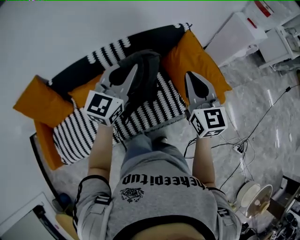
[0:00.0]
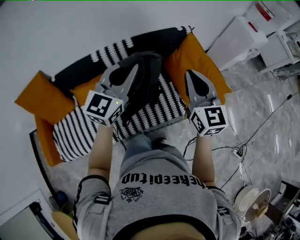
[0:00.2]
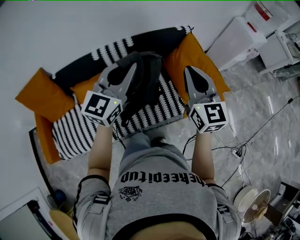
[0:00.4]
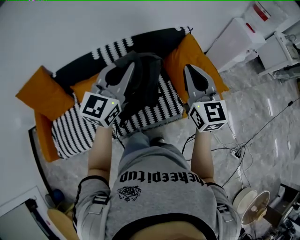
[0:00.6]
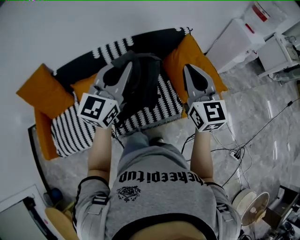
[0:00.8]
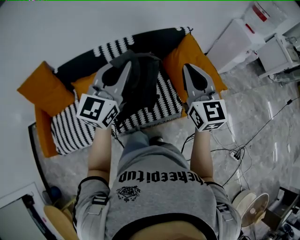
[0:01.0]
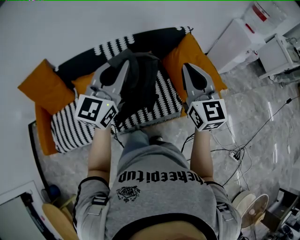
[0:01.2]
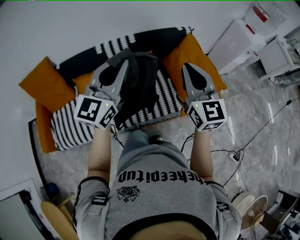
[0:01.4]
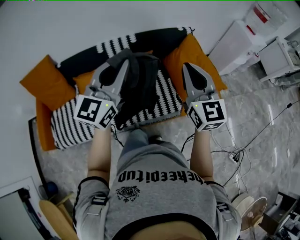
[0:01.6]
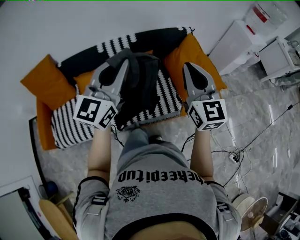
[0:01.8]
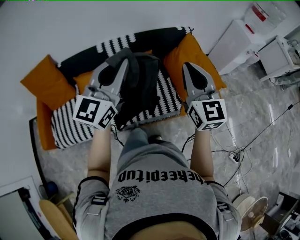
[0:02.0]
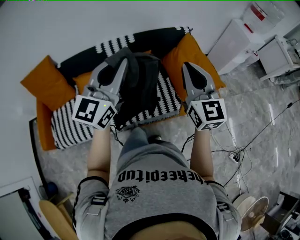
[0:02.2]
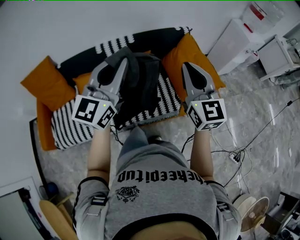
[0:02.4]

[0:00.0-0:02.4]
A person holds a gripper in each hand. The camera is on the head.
0:00.0 to 0:01.2: The right gripper is displaced backward by about 5 cm, while the left gripper heads backward and upward, covering about 10 cm.
0:01.2 to 0:02.4: The left gripper moves about 5 cm.

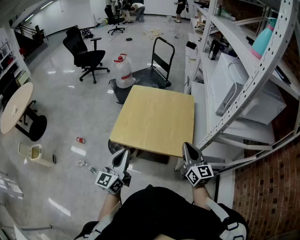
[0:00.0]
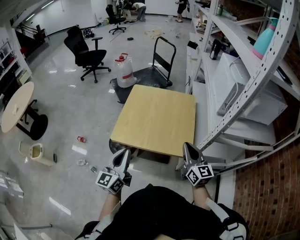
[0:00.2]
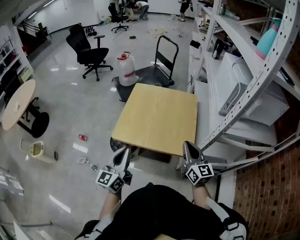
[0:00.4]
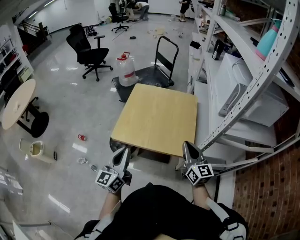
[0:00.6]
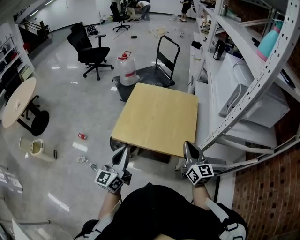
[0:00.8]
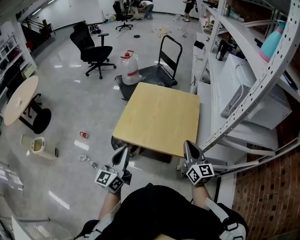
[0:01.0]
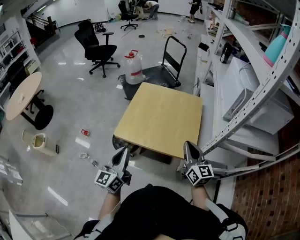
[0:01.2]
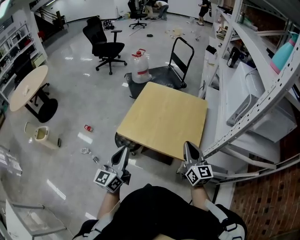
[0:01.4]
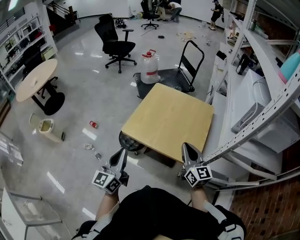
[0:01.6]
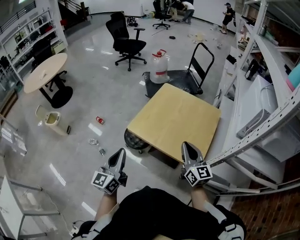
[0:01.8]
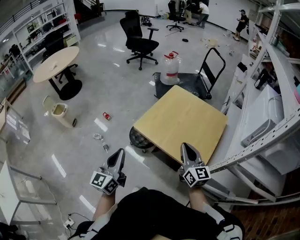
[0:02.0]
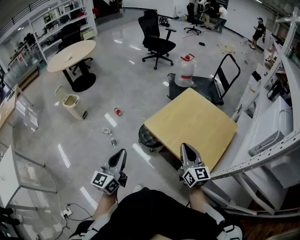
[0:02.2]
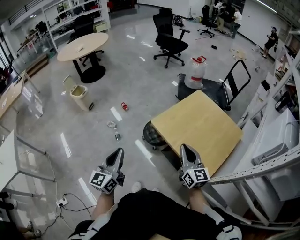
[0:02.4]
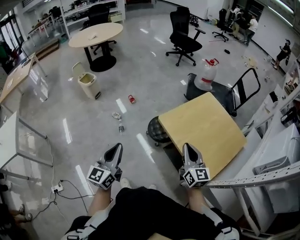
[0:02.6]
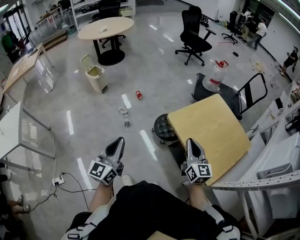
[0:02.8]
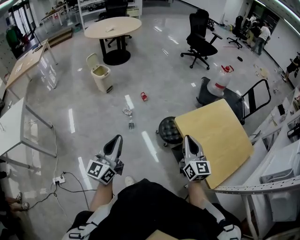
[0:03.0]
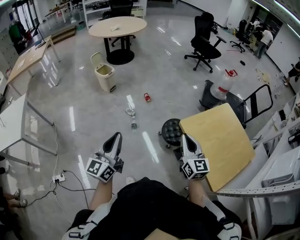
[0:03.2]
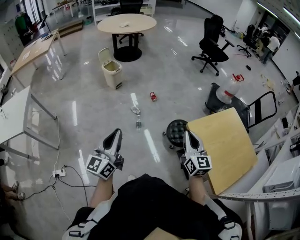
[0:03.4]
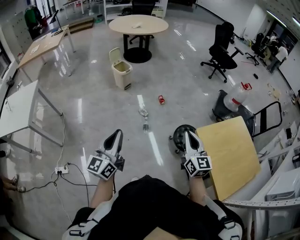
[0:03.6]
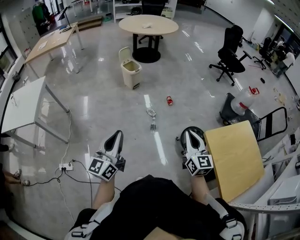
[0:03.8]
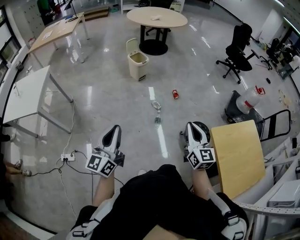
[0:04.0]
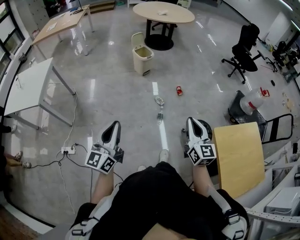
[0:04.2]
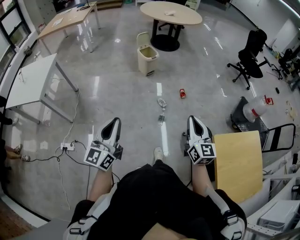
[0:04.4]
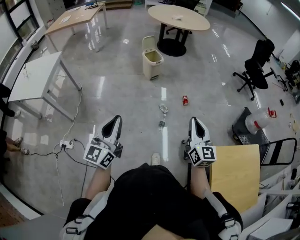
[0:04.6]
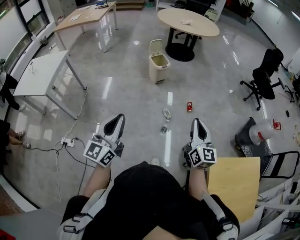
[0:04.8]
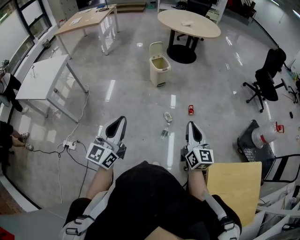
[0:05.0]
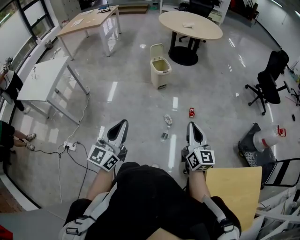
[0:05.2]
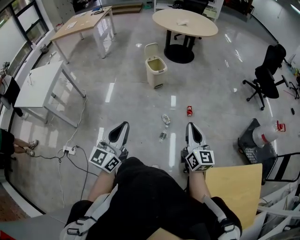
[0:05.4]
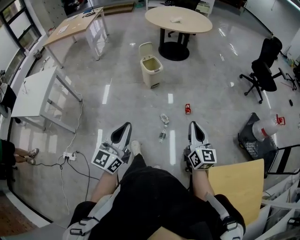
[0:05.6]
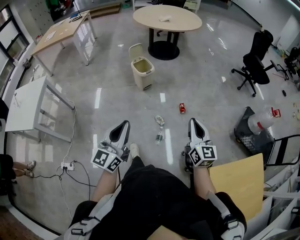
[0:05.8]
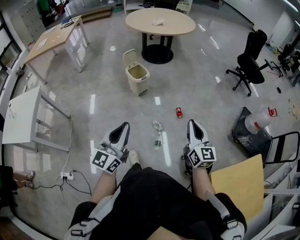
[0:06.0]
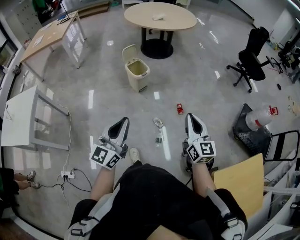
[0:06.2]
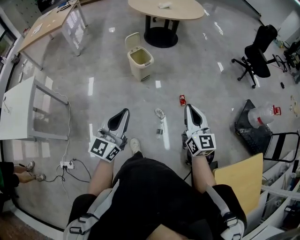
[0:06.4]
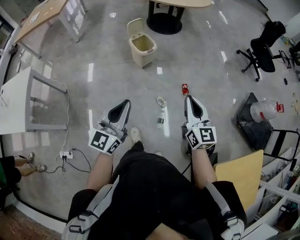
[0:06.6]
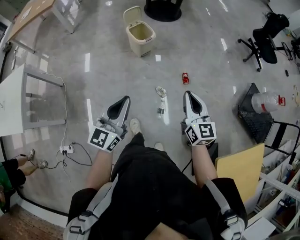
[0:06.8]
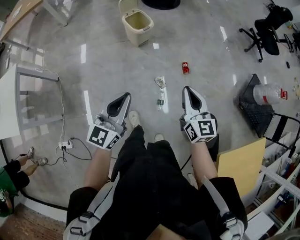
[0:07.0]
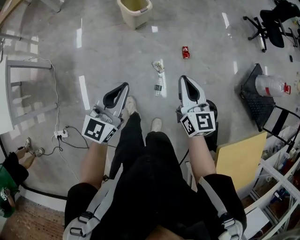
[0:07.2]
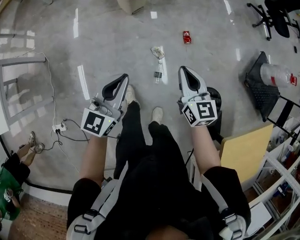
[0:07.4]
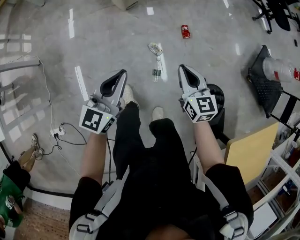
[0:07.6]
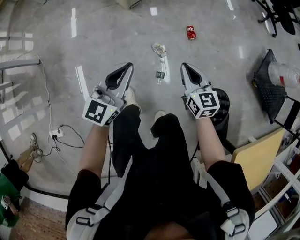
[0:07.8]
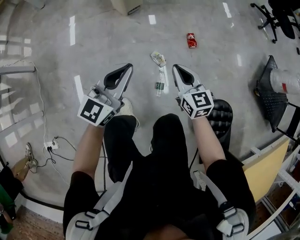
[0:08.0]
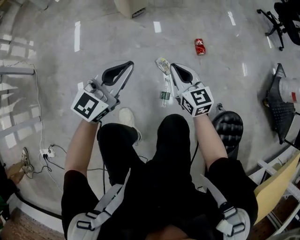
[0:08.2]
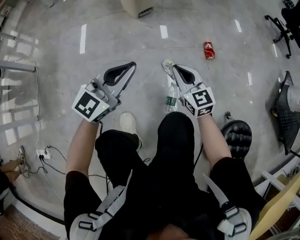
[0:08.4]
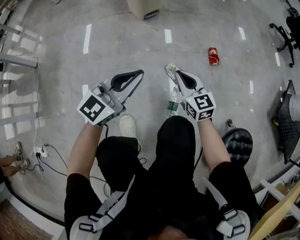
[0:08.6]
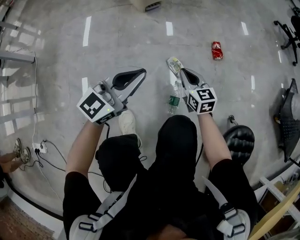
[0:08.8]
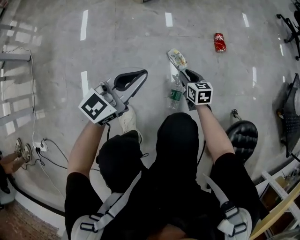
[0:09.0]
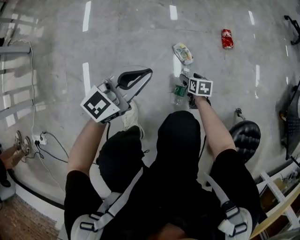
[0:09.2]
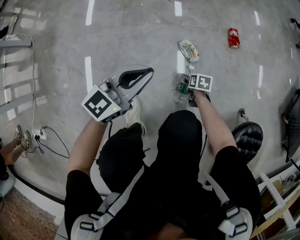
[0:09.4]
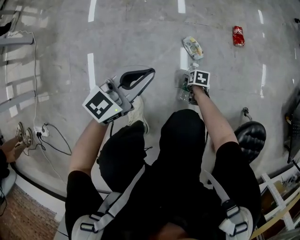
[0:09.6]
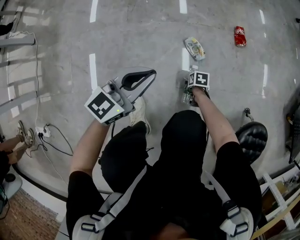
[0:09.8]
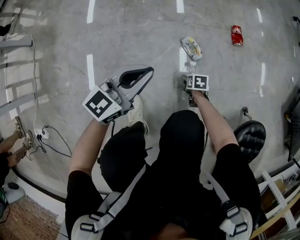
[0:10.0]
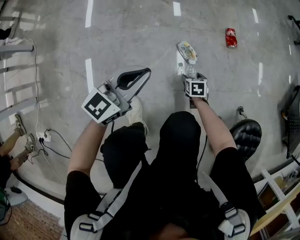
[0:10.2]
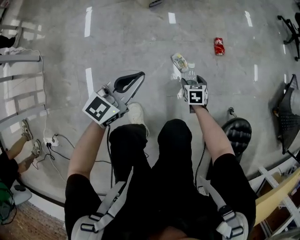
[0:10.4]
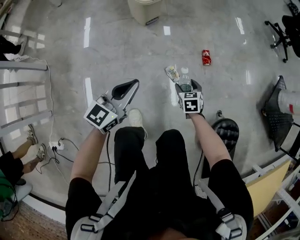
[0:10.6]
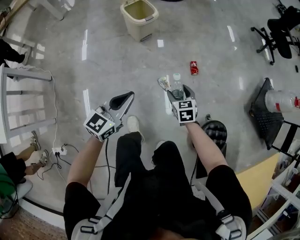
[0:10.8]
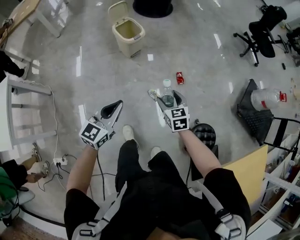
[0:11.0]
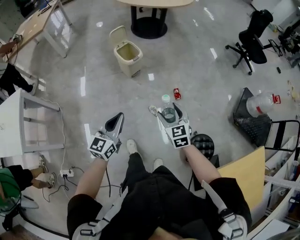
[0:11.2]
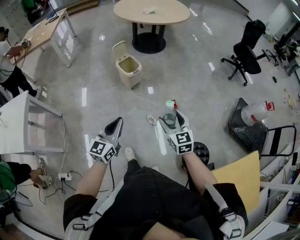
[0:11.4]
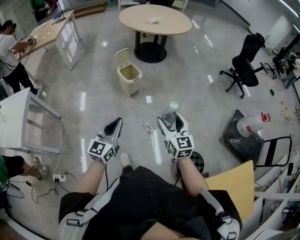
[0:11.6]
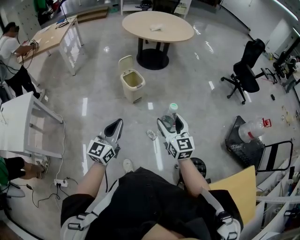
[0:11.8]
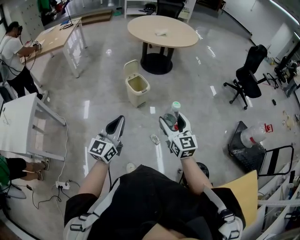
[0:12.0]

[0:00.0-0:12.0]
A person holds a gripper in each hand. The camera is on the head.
0:00.0 to 0:01.6: The right gripper changes place by roughly 5 cm.
0:01.6 to 0:03.0: The left gripper moves roughly 25 cm, and rotates roughly 40 degrees. Meanwhile the right gripper ends up some 25 cm from where it was, and changes its angle by approximately 30 degrees.
0:03.0 to 0:04.4: The right gripper is displaced to the left and forward by about 30 cm, and swivels roughly 20 degrees. Meanwhile the left gripper moves to the left, some 25 cm, and swivels roughly 20 degrees.
0:04.4 to 0:06.0: The two grippers go some 25 cm forward.
0:06.0 to 0:07.6: The right gripper is displaced downward by about 30 cm, and changes its angle by roughly 20 degrees, while the left gripper goes some 30 cm downward and forward.
0:07.6 to 0:09.0: The left gripper moves downward, roughly 35 cm. The right gripper goes roughly 50 cm downward, and rotates approximately 20 degrees.
0:09.0 to 0:10.4: The right gripper moves roughly 20 cm downward and comes back, rotates approximately 20 degrees, and opens up, while the left gripper shifts about 5 cm upward.
0:10.4 to 0:12.0: Both grippers travel together upward, some 70 cm. The right gripper tips its fingers upward by approximately 50 degrees; the left gripper rotates approximately 30 degrees.

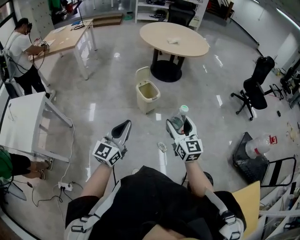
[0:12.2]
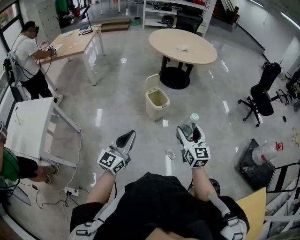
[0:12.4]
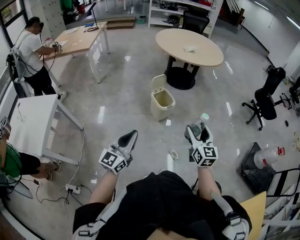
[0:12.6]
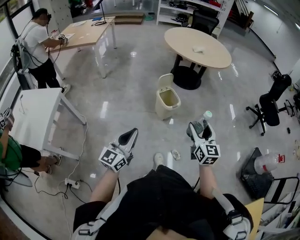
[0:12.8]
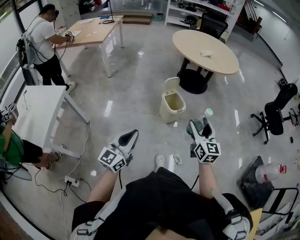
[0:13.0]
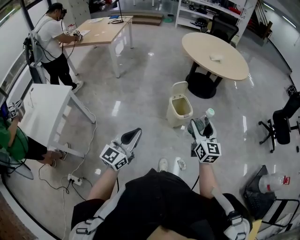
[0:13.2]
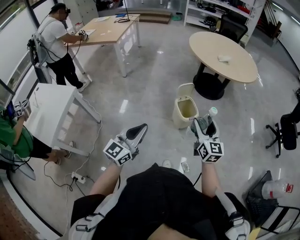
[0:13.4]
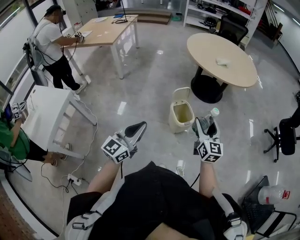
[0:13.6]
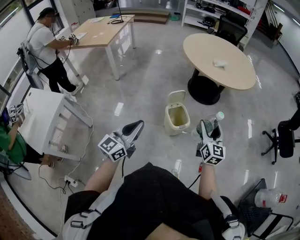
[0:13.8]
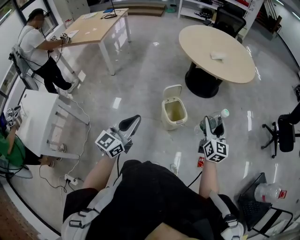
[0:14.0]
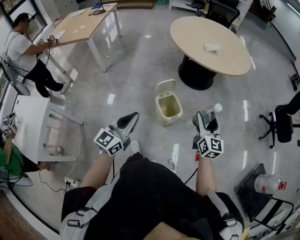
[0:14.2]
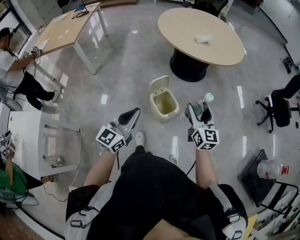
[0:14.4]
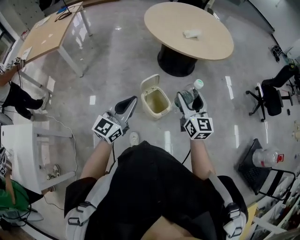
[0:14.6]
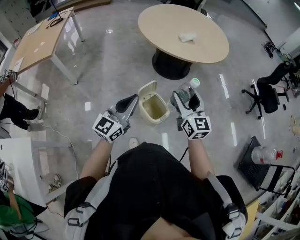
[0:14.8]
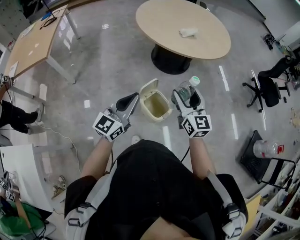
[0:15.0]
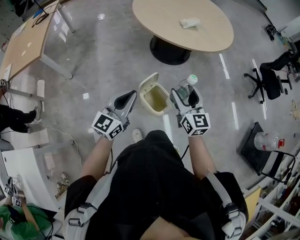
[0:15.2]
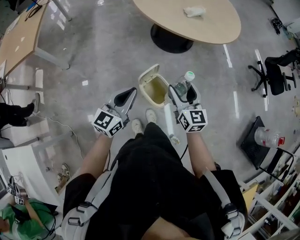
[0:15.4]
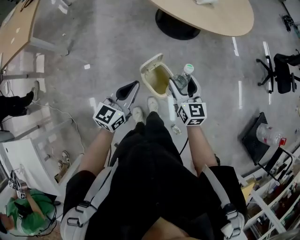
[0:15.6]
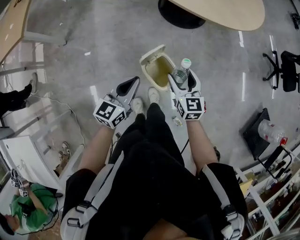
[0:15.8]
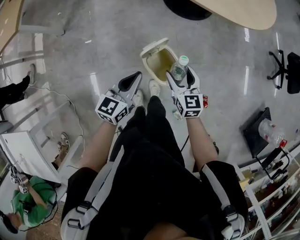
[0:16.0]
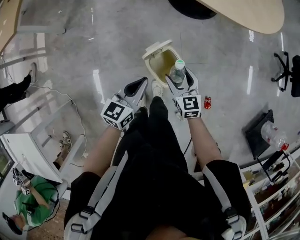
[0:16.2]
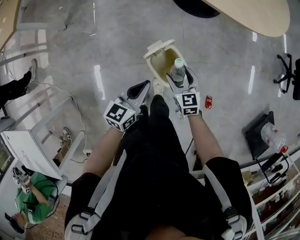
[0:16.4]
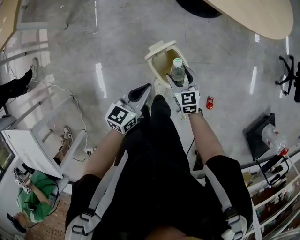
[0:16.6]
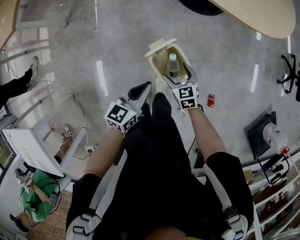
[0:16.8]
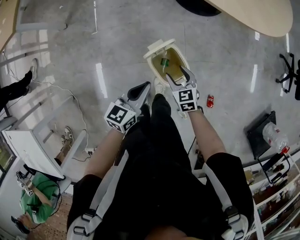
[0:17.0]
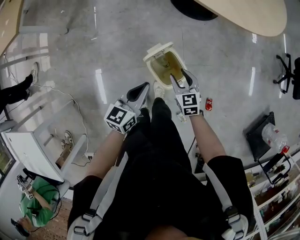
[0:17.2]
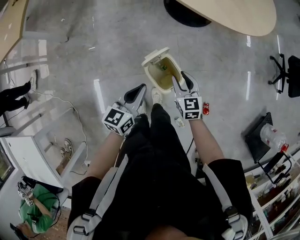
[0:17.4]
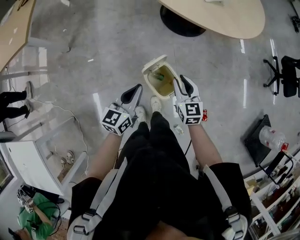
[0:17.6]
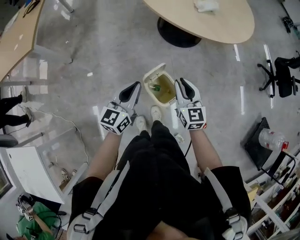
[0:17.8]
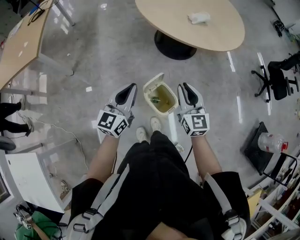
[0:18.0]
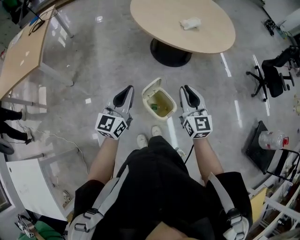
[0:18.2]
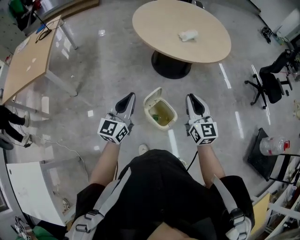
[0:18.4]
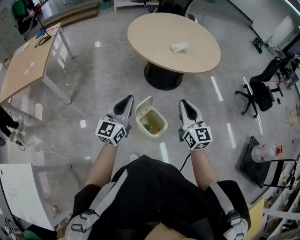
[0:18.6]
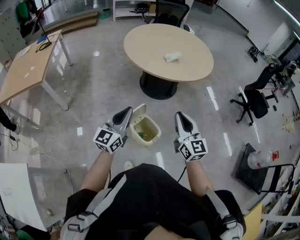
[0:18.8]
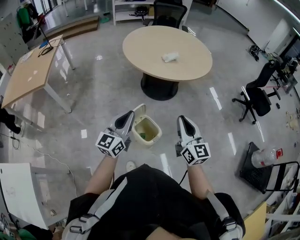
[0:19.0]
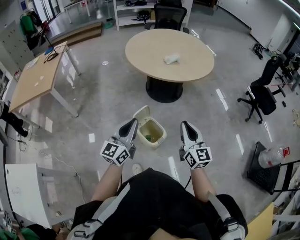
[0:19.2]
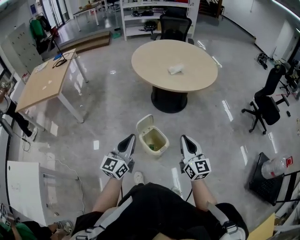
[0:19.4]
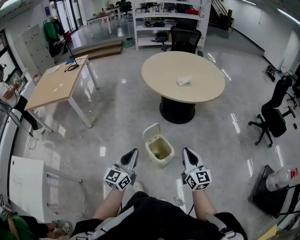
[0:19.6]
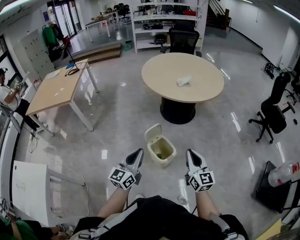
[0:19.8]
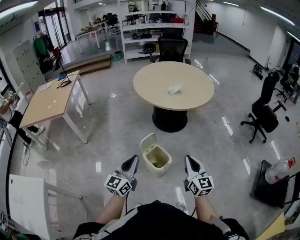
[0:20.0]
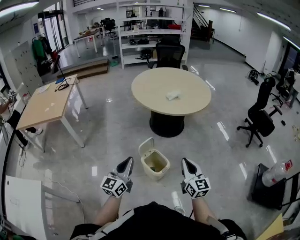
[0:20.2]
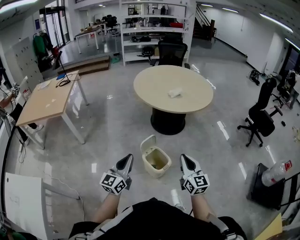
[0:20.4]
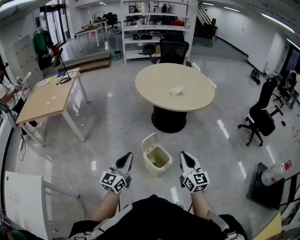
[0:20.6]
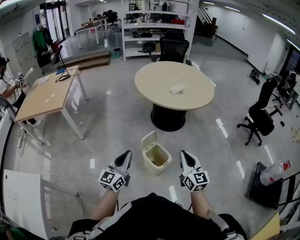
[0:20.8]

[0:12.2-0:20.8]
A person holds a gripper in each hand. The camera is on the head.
0:12.2 to 0:13.6: The right gripper goes roughly 30 cm forward; the left gripper moves forward and to the left, approximately 20 cm.
0:13.6 to 0:15.0: The grippers both shift forward by some 30 cm.
0:15.0 to 0:16.6: The grippers both shift downward by roughly 30 cm. The left gripper swivels some 40 degrees; the right gripper angles its fingers downward, by roughly 40 degrees.
0:16.6 to 0:18.0: Both grippers travel together upward, about 25 cm. The left gripper rotates about 30 degrees. Meanwhile the right gripper rotates some 30 degrees, and closes.
0:18.0 to 0:19.4: The grippers both shift backward, to the right and upward by roughly 25 cm.
0:19.4 to 0:20.8: Both grippers travel together to the left, roughly 10 cm.
